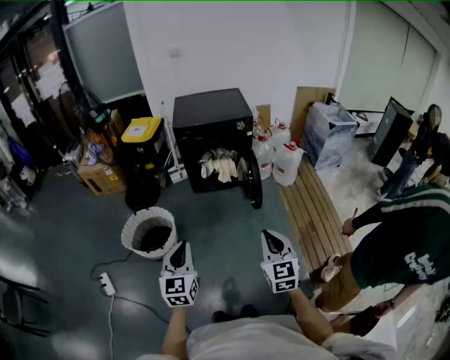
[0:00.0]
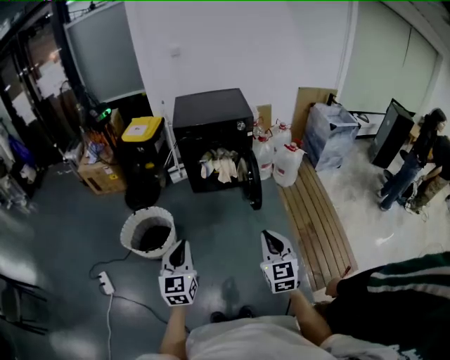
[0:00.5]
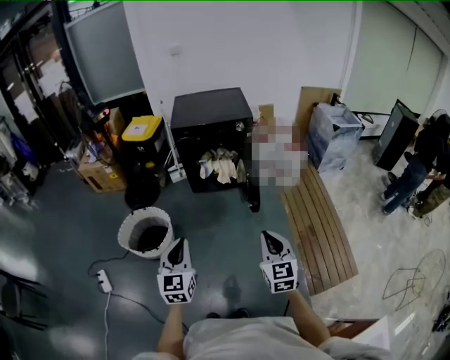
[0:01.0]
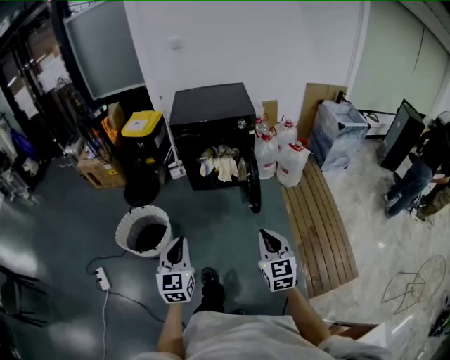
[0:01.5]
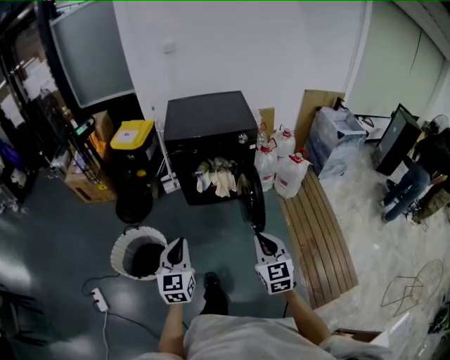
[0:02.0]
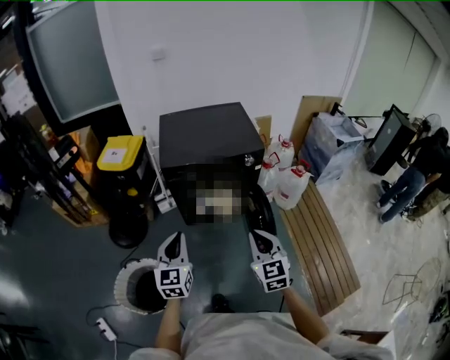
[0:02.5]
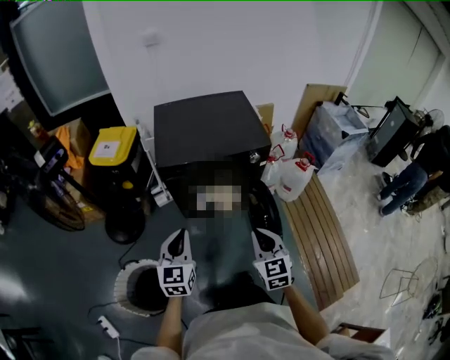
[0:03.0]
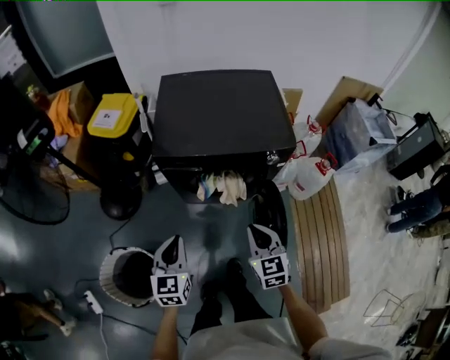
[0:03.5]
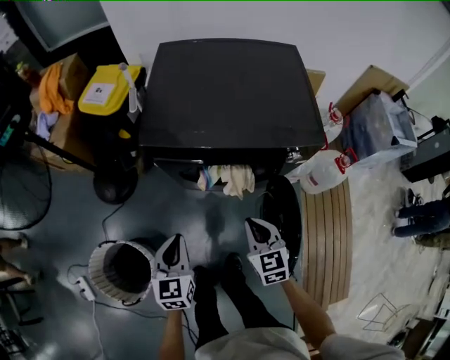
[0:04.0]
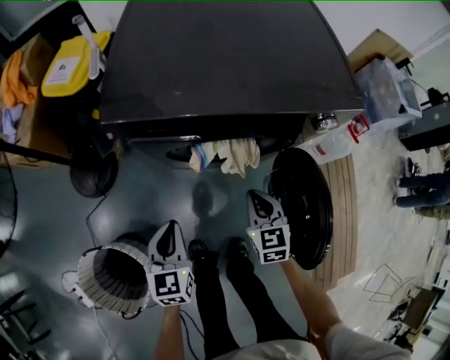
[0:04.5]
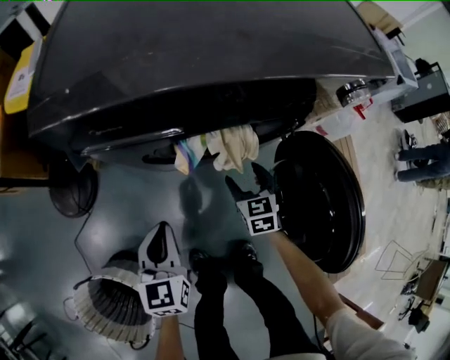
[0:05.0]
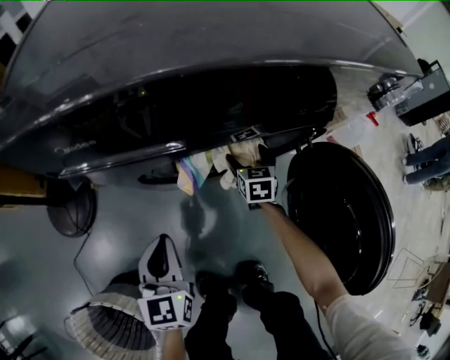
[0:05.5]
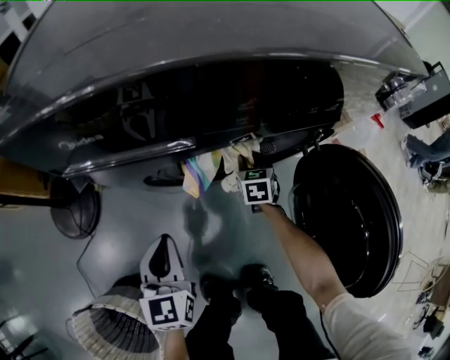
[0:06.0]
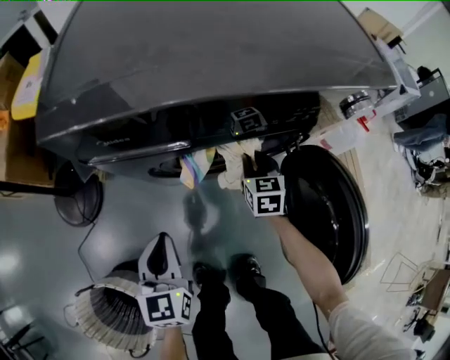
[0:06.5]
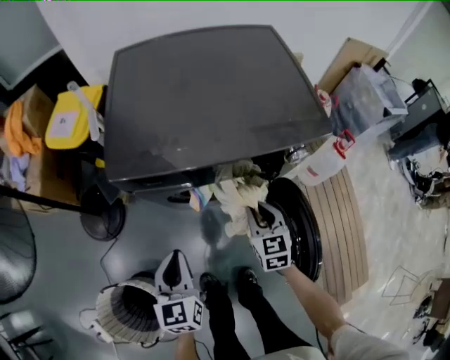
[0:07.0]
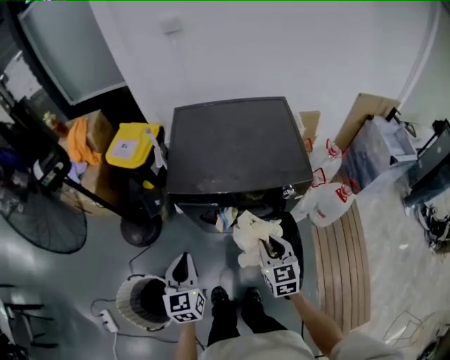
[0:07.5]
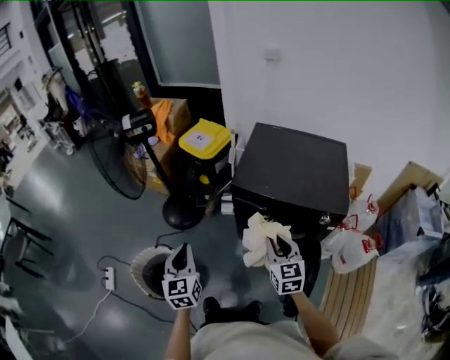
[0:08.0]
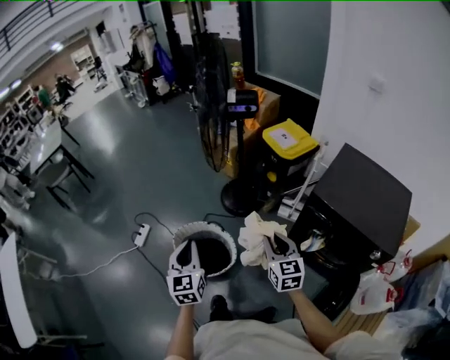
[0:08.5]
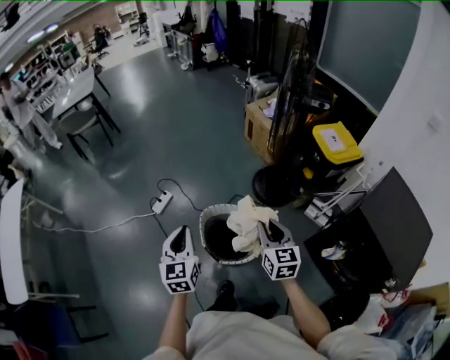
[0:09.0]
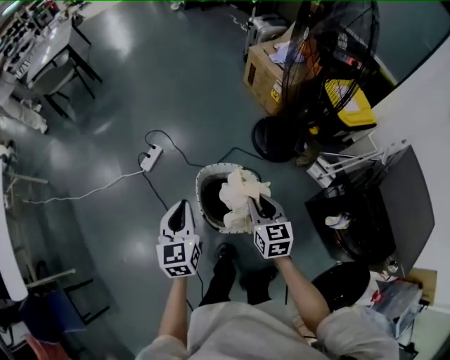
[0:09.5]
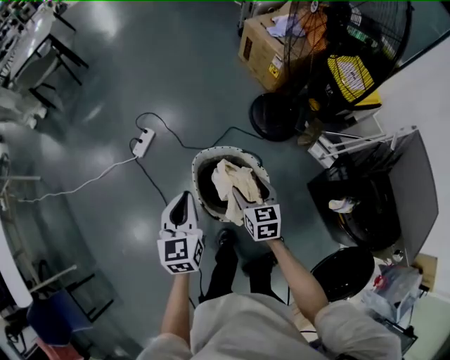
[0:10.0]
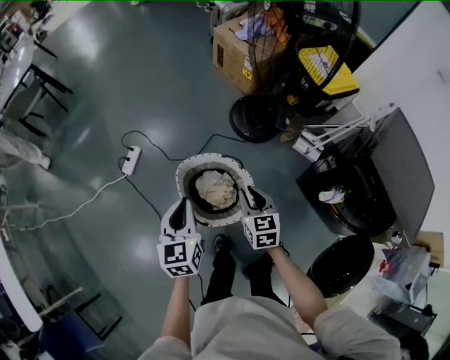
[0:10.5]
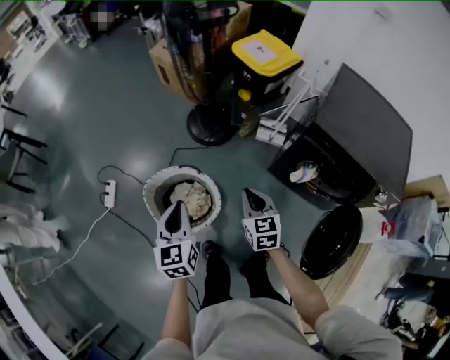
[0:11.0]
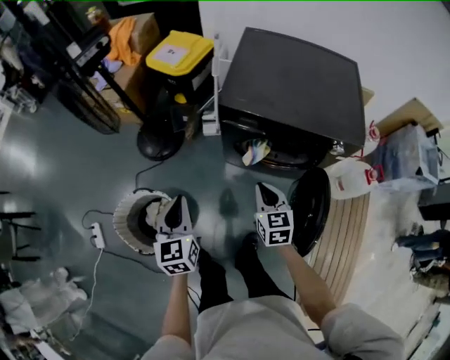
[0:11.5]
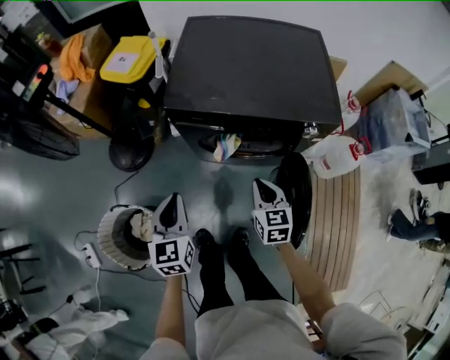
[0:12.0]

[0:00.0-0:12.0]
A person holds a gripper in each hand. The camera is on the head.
0:00.0 to 0:02.0: The two grippers go roughly 25 cm forward.
0:02.0 to 0:04.0: Both grippers are carried forward, about 50 cm. Both grippers move downward, some 20 cm. The right gripper turns by about 20 degrees. The left gripper swivels roughly 20 degrees.
0:04.0 to 0:06.0: The right gripper is displaced downward and forward by some 50 cm, rotates roughly 30 degrees, and opens and closes again. Meanwhile the left gripper travels downward by some 30 cm.
0:06.0 to 0:08.0: Both grippers move upward, some 60 cm. The right gripper rotates some 50 degrees; the left gripper rotates some 40 degrees.
0:08.0 to 0:10.0: The pair of grippers is taken roughly 60 cm. The right gripper rotates roughly 50 degrees, and opens its fingers. The left gripper swivels some 40 degrees.
0:10.0 to 0:12.0: Both grippers are carried roughly 70 cm. The right gripper swivels about 60 degrees, and closes up. The left gripper turns by some 50 degrees.

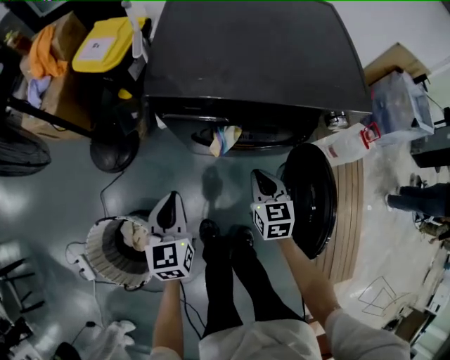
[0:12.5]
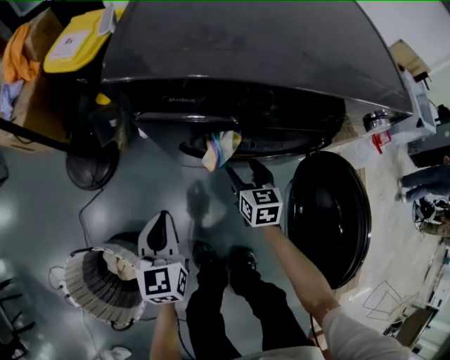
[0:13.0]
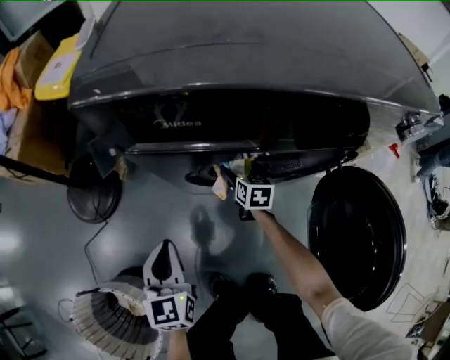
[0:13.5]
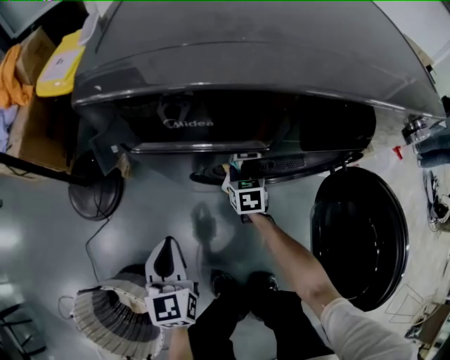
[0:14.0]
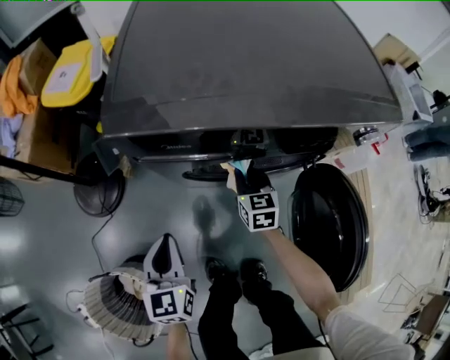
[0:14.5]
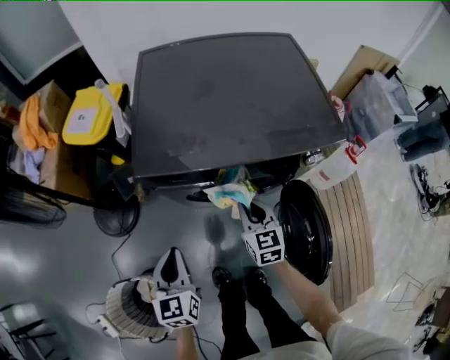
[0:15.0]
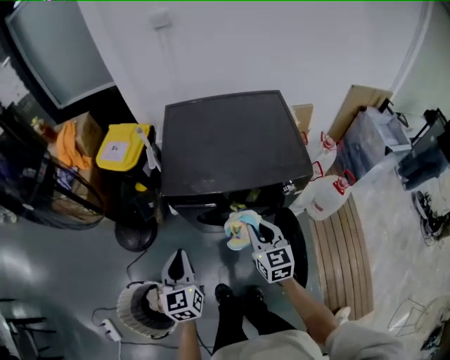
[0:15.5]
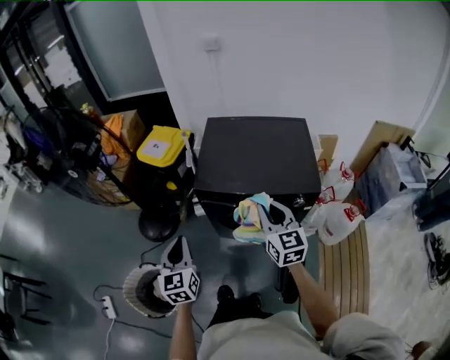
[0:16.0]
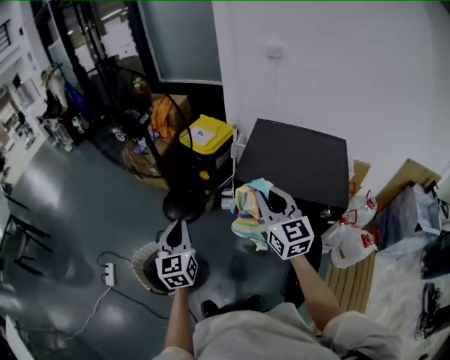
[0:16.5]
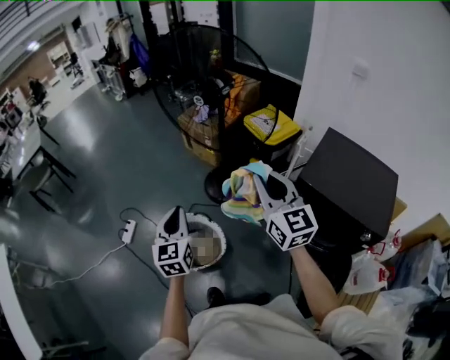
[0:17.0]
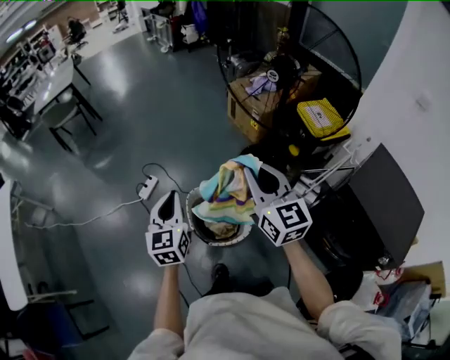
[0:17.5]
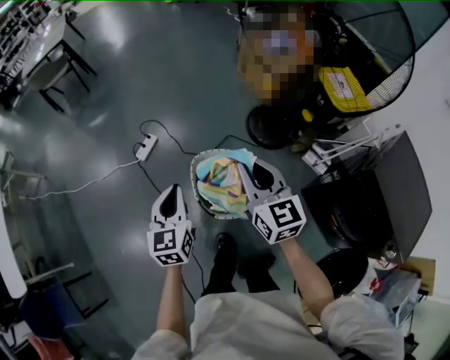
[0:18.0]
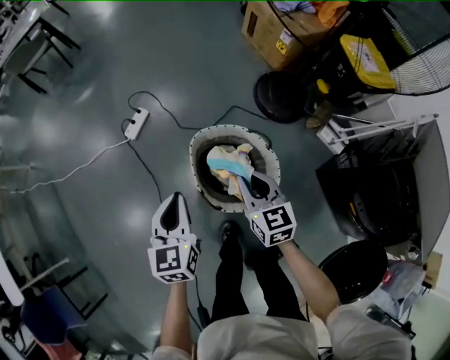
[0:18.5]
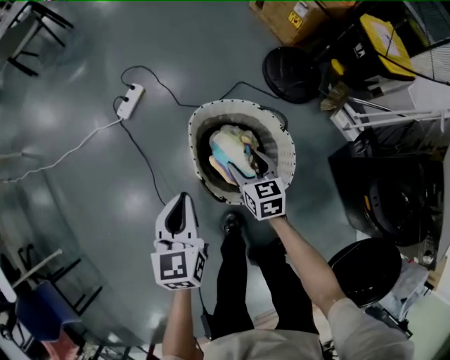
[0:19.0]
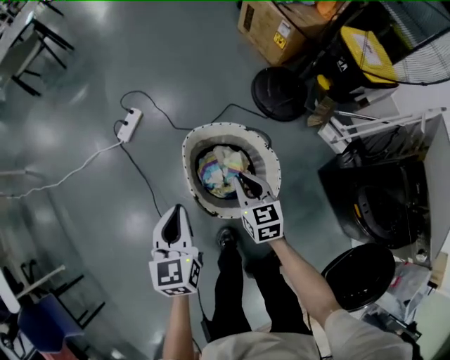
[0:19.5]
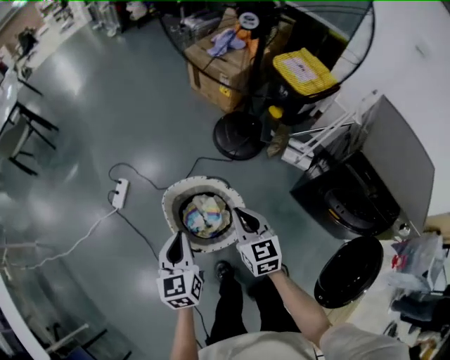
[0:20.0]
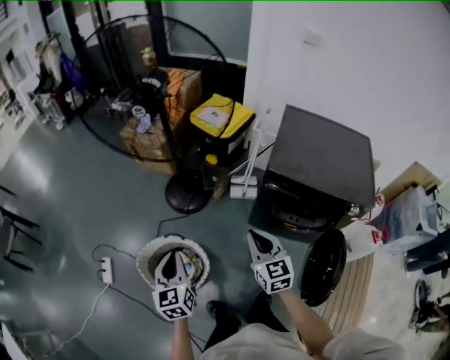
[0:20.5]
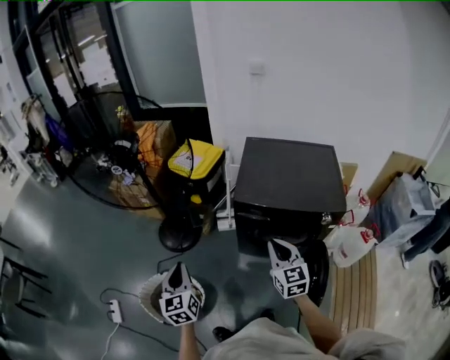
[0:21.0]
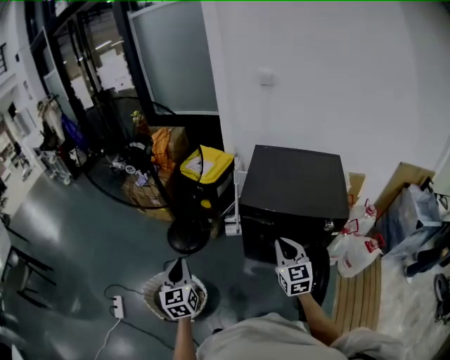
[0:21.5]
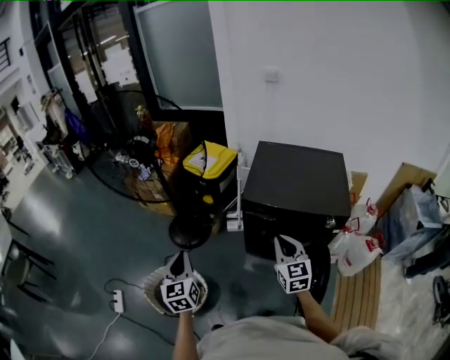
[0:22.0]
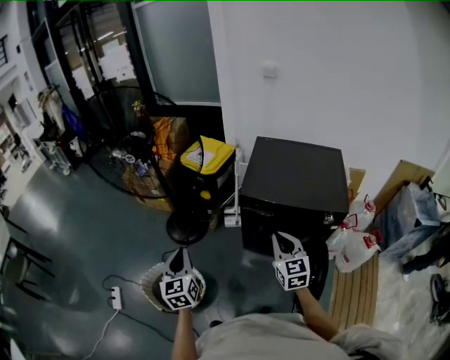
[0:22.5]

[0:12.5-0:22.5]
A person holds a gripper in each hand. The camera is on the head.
0:12.5 to 0:14.5: The right gripper travels downward and forward by some 20 cm, and opens and closes again, while the left gripper shifts approximately 10 cm downward.
0:14.5 to 0:16.5: Both grippers move upward, some 60 cm. The right gripper tips its fingers upward by some 30 degrees, while the left gripper changes its angle by about 30 degrees.
0:16.5 to 0:18.5: Both grippers are carried about 60 cm. The right gripper changes its angle by approximately 50 degrees, while the left gripper changes its angle by about 40 degrees.
0:18.5 to 0:20.5: The left gripper moves some 35 cm, and turns by approximately 30 degrees; the right gripper shifts by some 50 cm, swivels roughly 40 degrees, and opens, then closes once more.
0:20.5 to 0:22.5: The two grippers go approximately 20 cm to the right and upward.

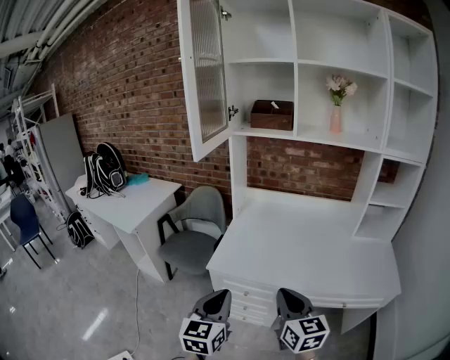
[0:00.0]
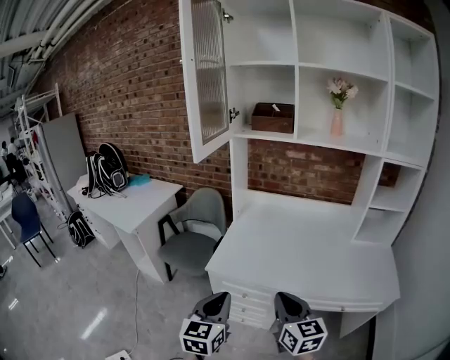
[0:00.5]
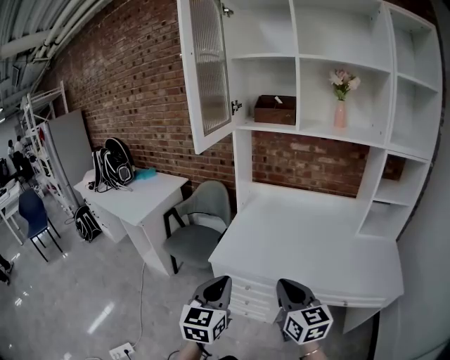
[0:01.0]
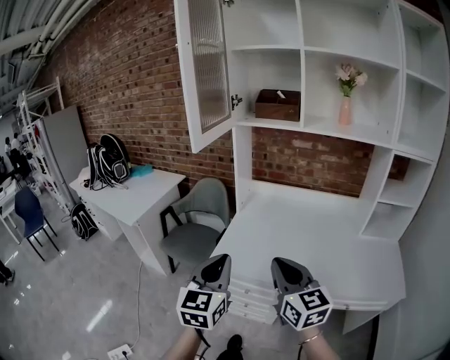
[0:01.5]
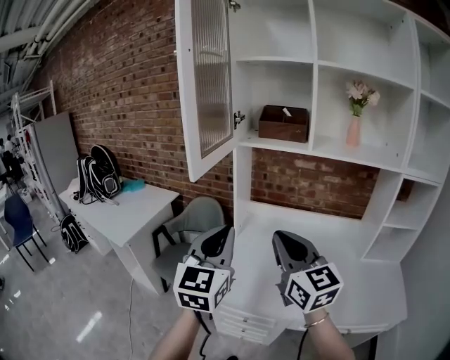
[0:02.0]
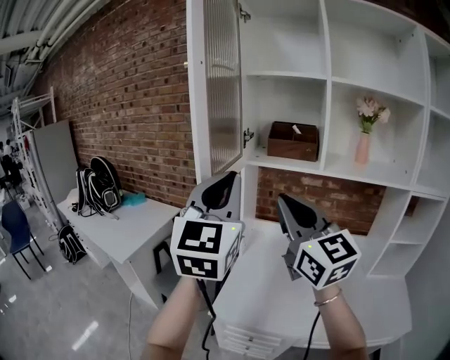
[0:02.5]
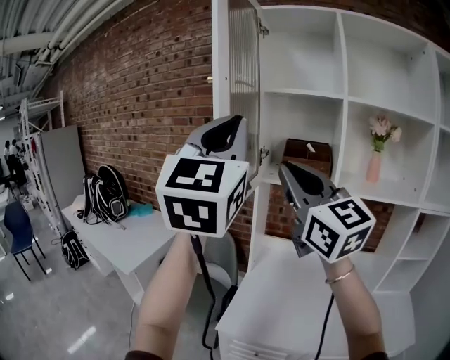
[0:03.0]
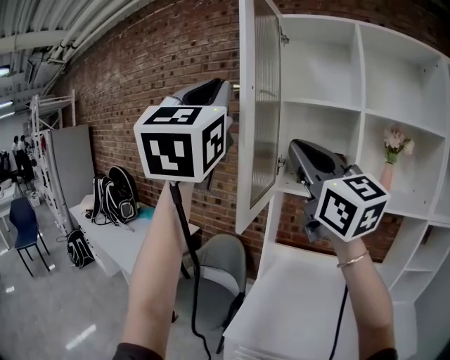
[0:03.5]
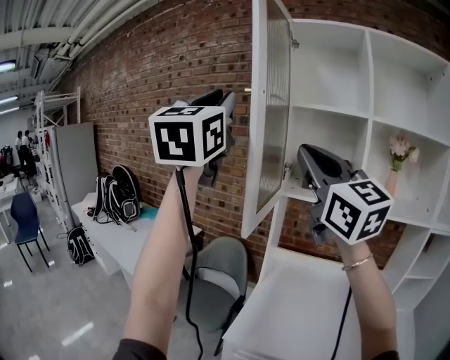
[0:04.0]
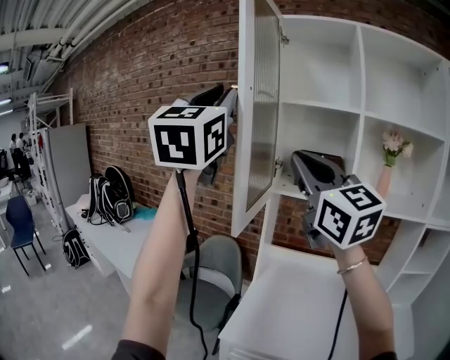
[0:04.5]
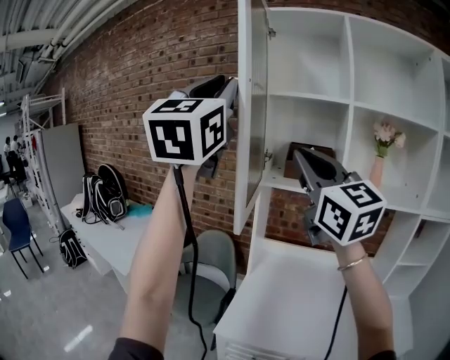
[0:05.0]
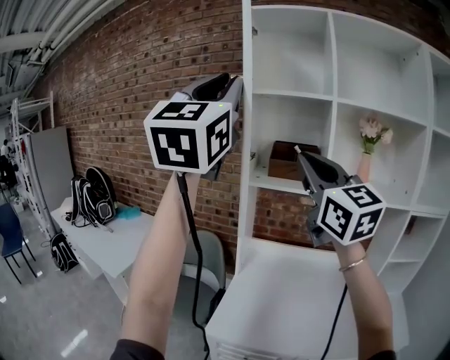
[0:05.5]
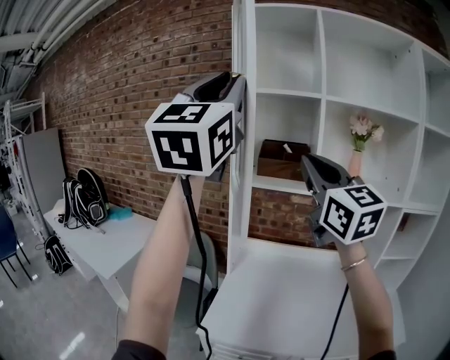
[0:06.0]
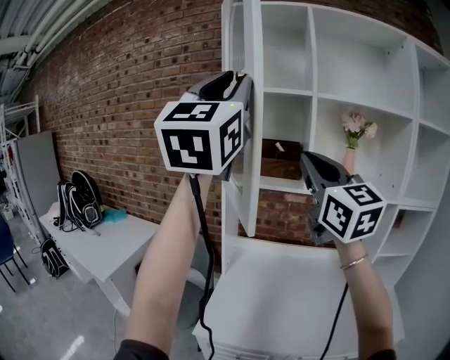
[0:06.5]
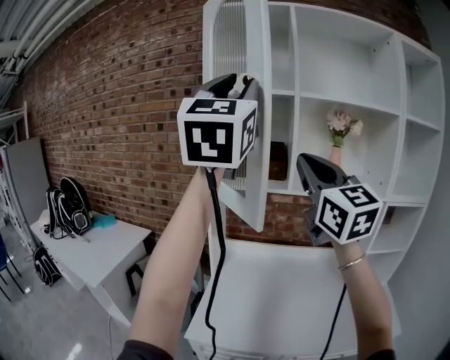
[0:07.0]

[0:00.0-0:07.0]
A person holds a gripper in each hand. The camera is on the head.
0:00.0 to 0:02.0: The two grippers go some 25 cm forward and upward. The right gripper changes its angle by some 20 degrees. The left gripper rotates approximately 20 degrees.
0:02.0 to 0:03.5: The grippers both shift upward by some 35 cm. The right gripper swivels roughly 20 degrees. The left gripper swivels roughly 30 degrees.
0:03.5 to 0:05.0: The left gripper ends up some 5 cm from where it was. Meanwhile the right gripper shifts roughly 5 cm to the right.
0:05.0 to 0:07.0: Both grippers travel together to the right, roughly 15 cm.
